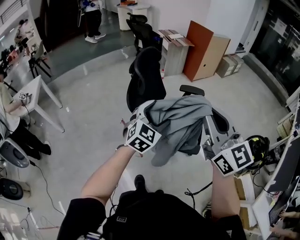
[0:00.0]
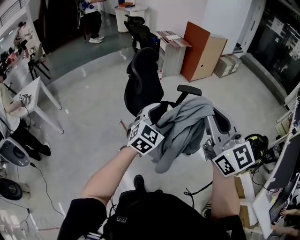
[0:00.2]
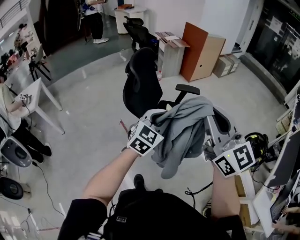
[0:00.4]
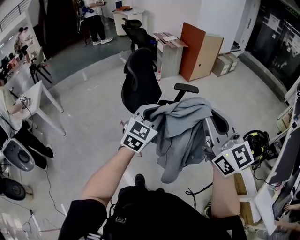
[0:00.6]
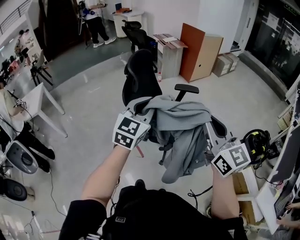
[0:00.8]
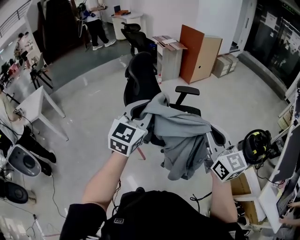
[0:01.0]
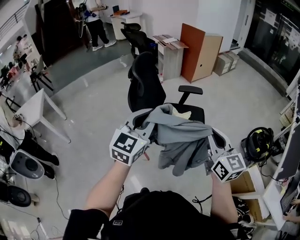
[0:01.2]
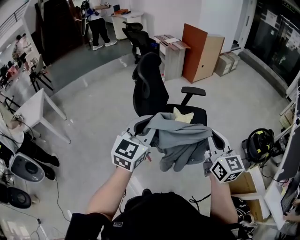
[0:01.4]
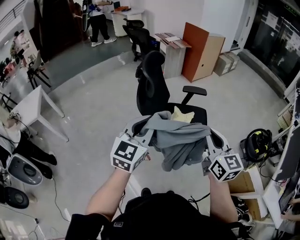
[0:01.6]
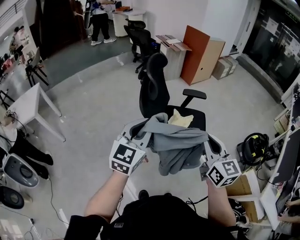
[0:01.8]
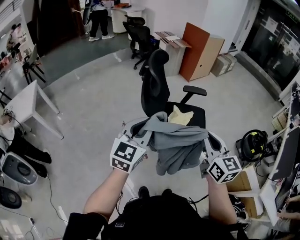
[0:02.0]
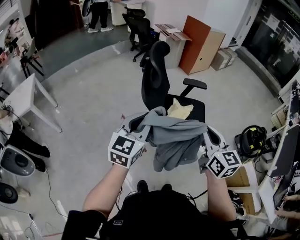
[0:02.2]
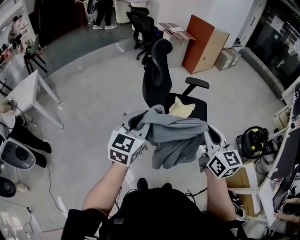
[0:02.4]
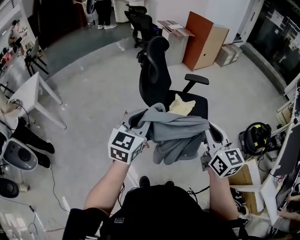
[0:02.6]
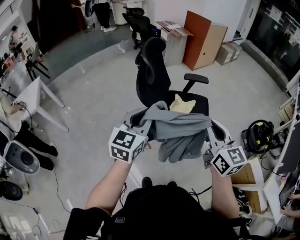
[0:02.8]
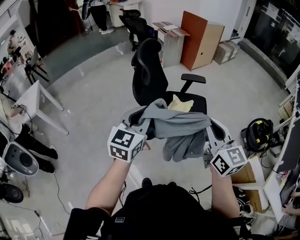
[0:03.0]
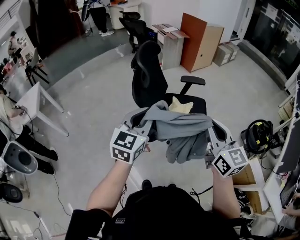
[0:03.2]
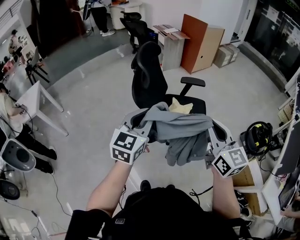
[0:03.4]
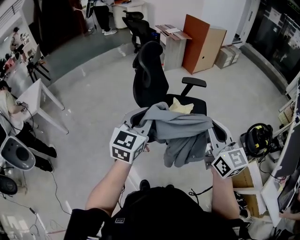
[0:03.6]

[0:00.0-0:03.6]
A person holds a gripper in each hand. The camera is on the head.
0:00.0 to 0:01.8: The right gripper travels downward by roughly 10 cm, and turns by about 20 degrees. The left gripper is displaced to the left, backward and upward by about 15 cm, rotates roughly 20 degrees, and closes up.
0:01.8 to 0:03.6: The left gripper moves approximately 5 cm.

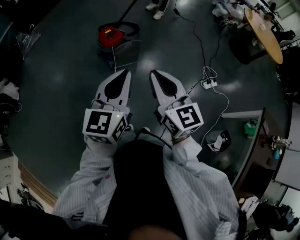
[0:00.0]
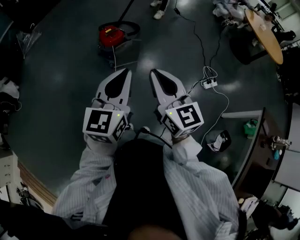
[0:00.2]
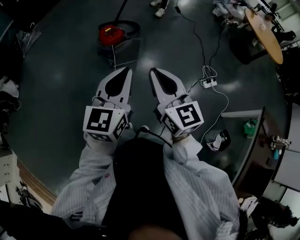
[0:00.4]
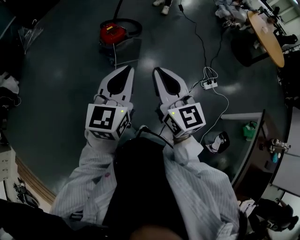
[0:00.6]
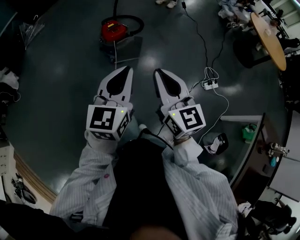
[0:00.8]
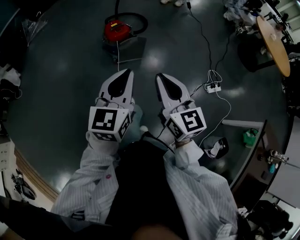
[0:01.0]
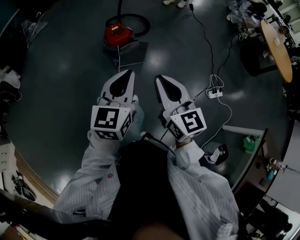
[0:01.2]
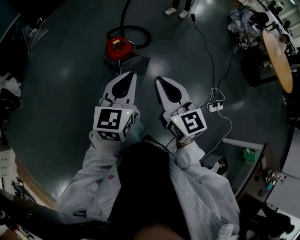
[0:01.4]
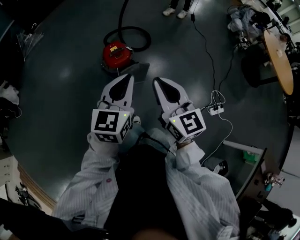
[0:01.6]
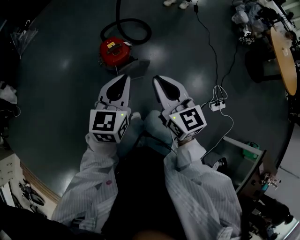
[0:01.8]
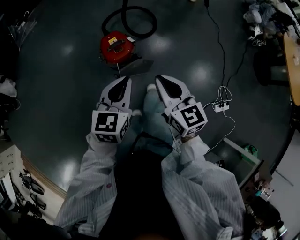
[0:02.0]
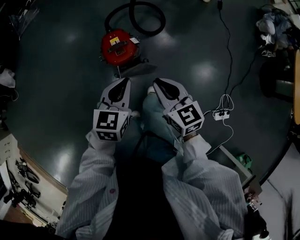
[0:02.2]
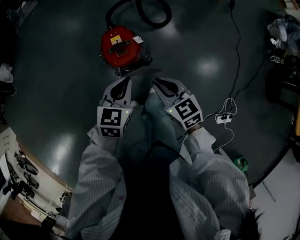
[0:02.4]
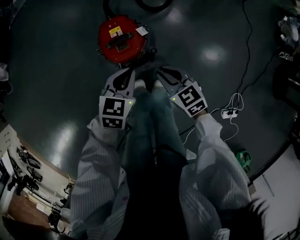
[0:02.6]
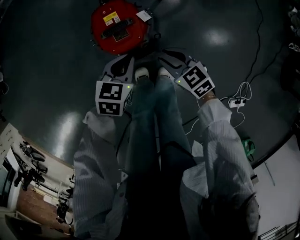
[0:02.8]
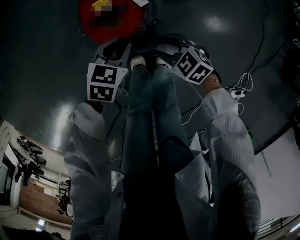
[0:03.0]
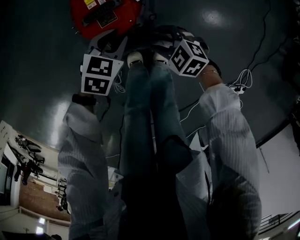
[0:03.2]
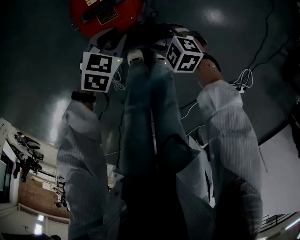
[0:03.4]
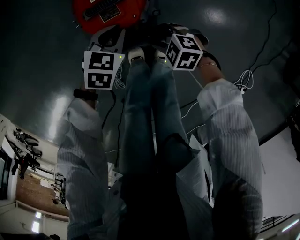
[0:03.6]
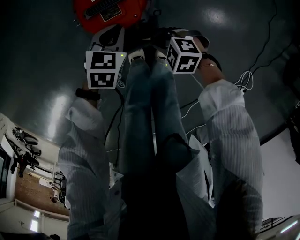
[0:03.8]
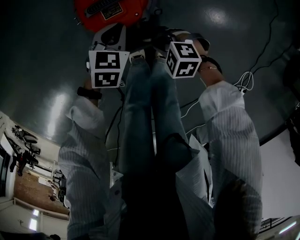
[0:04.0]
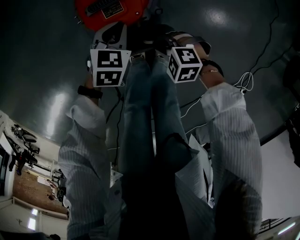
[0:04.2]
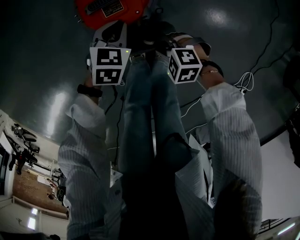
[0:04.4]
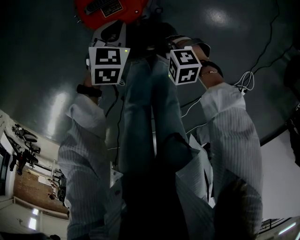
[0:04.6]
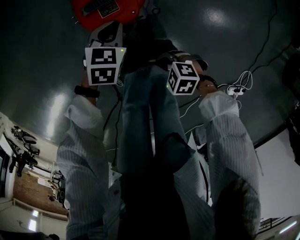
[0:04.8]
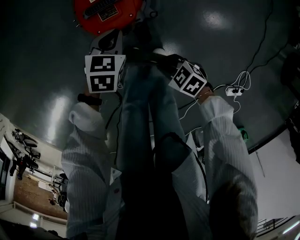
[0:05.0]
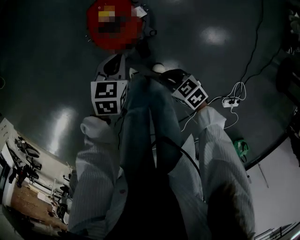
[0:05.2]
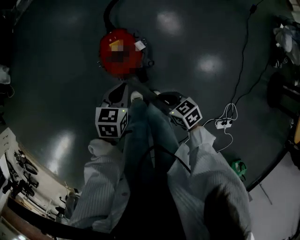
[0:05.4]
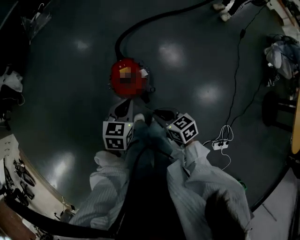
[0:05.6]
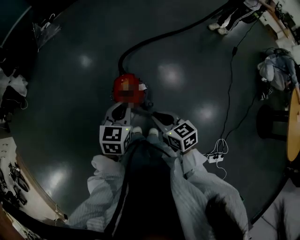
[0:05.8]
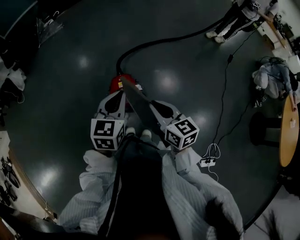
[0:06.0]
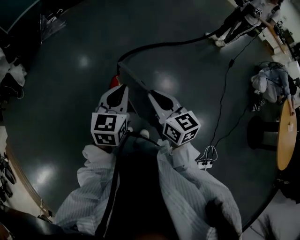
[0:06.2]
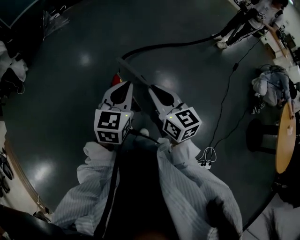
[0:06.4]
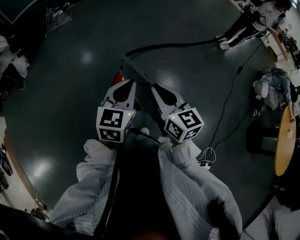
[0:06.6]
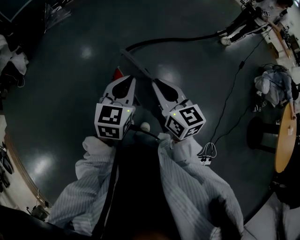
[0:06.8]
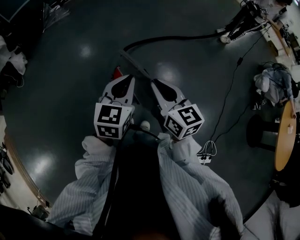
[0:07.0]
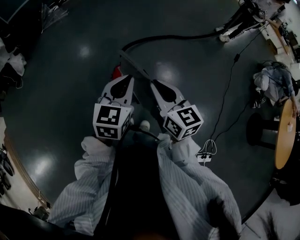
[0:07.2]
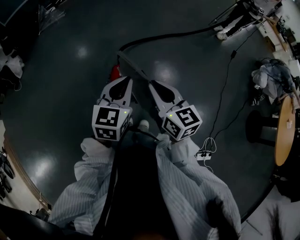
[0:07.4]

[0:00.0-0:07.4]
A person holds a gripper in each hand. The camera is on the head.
0:00.0 to 0:01.4: The grippers both shift forward by approximately 20 cm.
0:01.4 to 0:03.0: The pair of grippers is taken forward, some 50 cm. Both grippers move downward, roughly 60 cm. The left gripper tips its fingers downward by about 40 degrees, while the right gripper tips its fingers downward by roughly 50 degrees, and opens up.
0:03.0 to 0:04.4: The two grippers go some 5 cm downward. The right gripper rotates approximately 30 degrees, and closes its fingers.
0:04.4 to 0:06.0: Both grippers travel together upward, roughly 60 cm. The right gripper points its fingers roughly 40 degrees further upward; the left gripper tilts its fingers about 30 degrees upward.
0:06.0 to 0:07.4: The right gripper changes place by about 5 cm.

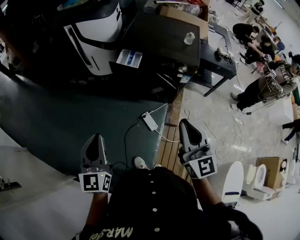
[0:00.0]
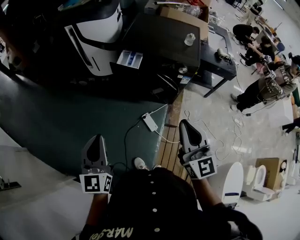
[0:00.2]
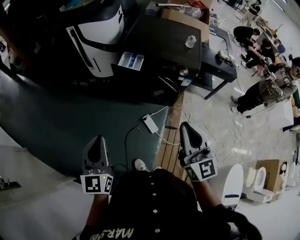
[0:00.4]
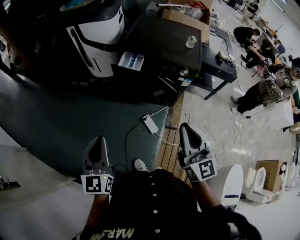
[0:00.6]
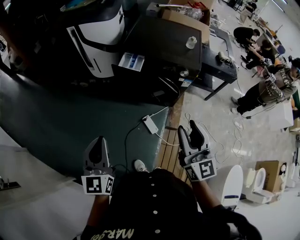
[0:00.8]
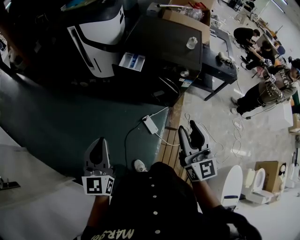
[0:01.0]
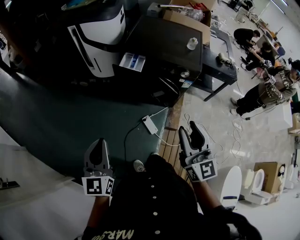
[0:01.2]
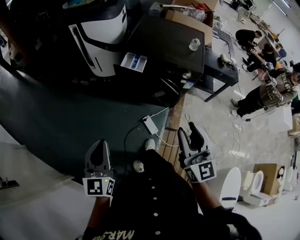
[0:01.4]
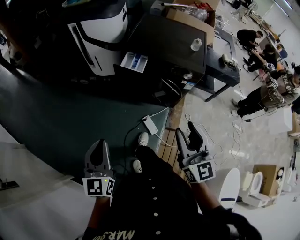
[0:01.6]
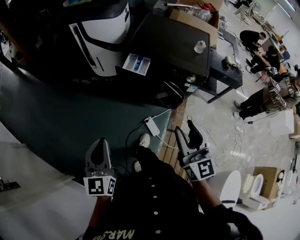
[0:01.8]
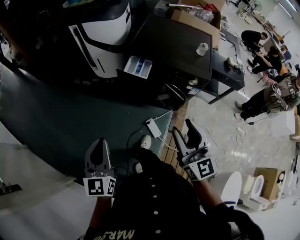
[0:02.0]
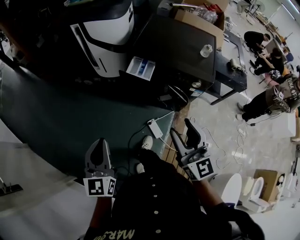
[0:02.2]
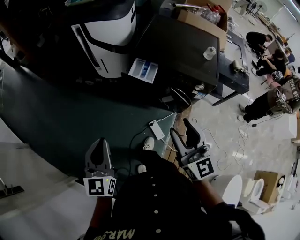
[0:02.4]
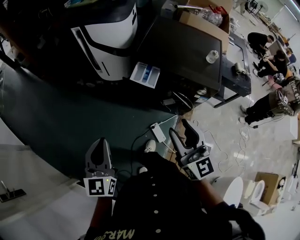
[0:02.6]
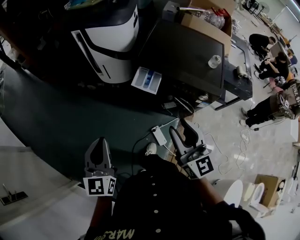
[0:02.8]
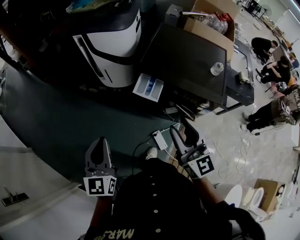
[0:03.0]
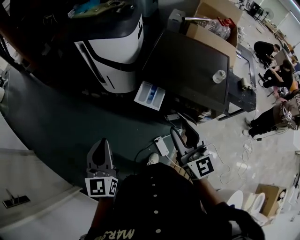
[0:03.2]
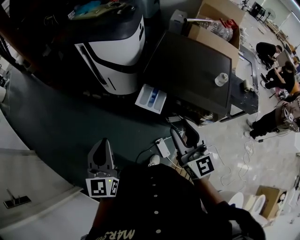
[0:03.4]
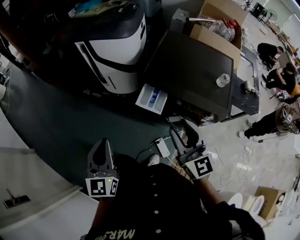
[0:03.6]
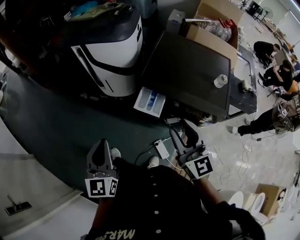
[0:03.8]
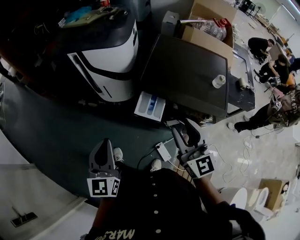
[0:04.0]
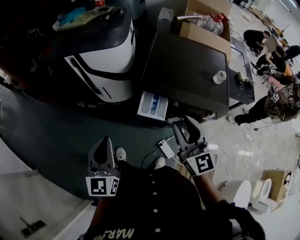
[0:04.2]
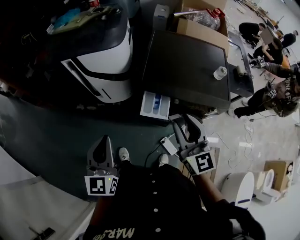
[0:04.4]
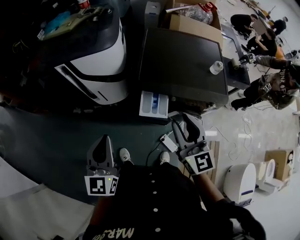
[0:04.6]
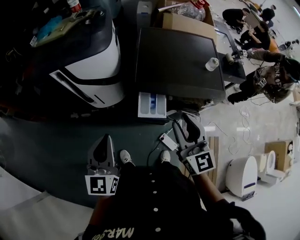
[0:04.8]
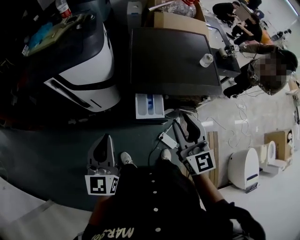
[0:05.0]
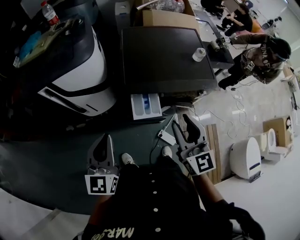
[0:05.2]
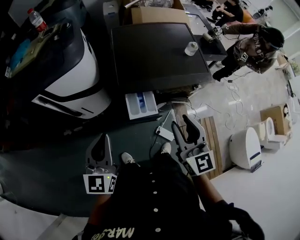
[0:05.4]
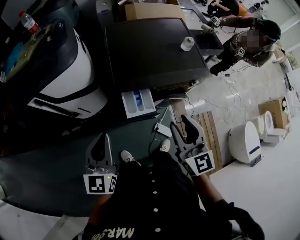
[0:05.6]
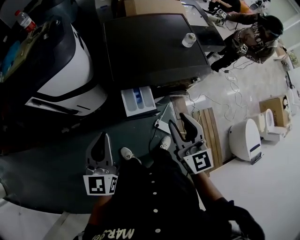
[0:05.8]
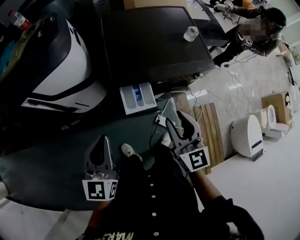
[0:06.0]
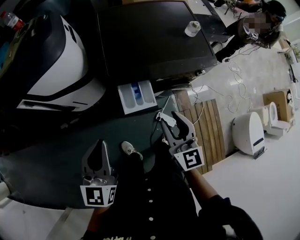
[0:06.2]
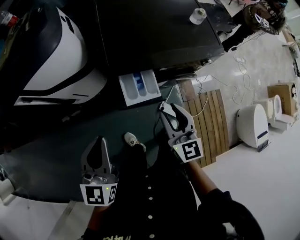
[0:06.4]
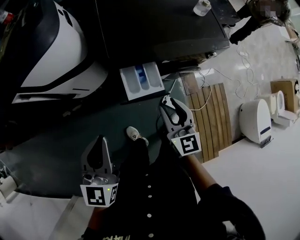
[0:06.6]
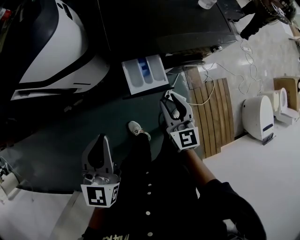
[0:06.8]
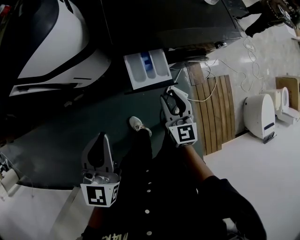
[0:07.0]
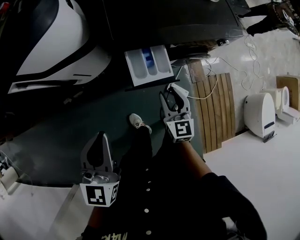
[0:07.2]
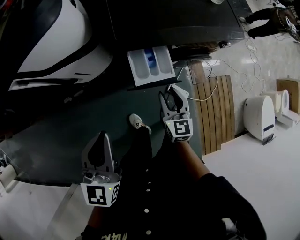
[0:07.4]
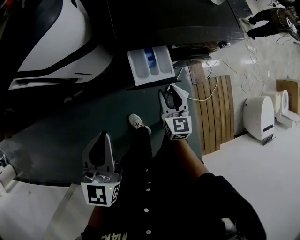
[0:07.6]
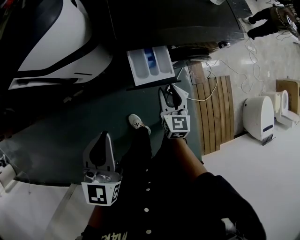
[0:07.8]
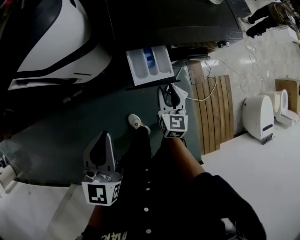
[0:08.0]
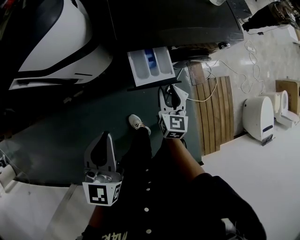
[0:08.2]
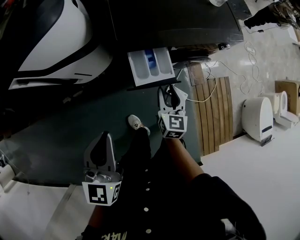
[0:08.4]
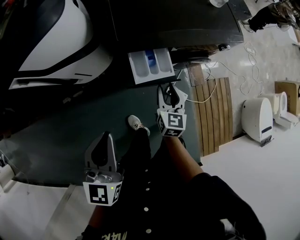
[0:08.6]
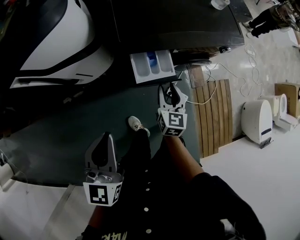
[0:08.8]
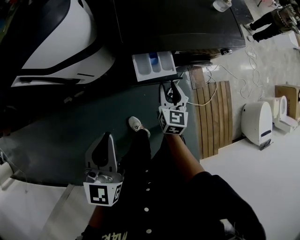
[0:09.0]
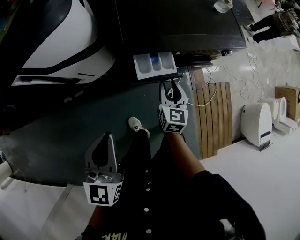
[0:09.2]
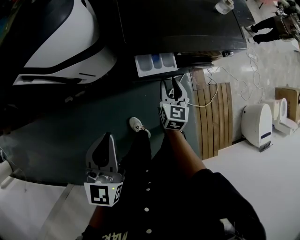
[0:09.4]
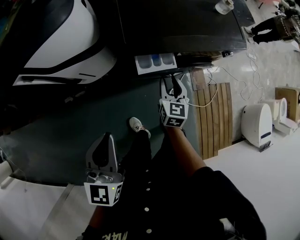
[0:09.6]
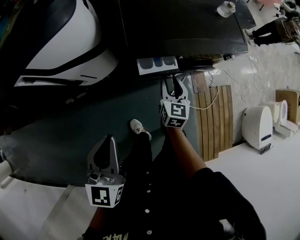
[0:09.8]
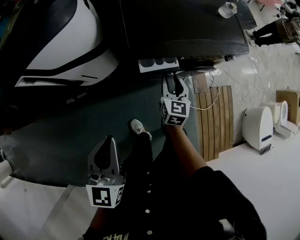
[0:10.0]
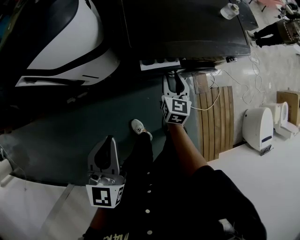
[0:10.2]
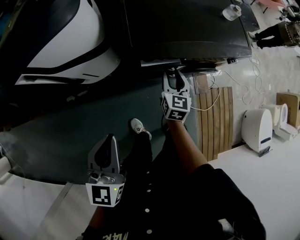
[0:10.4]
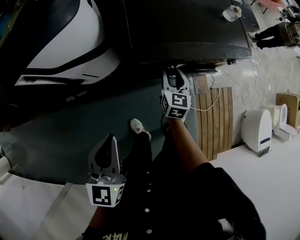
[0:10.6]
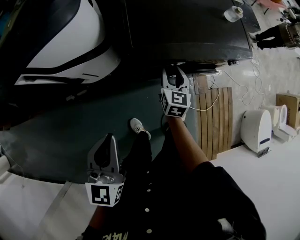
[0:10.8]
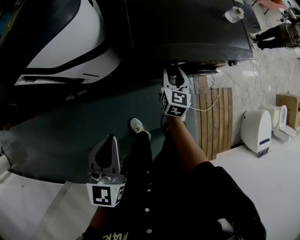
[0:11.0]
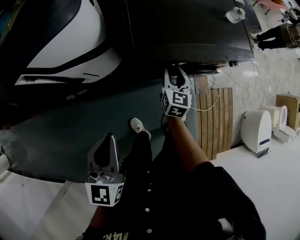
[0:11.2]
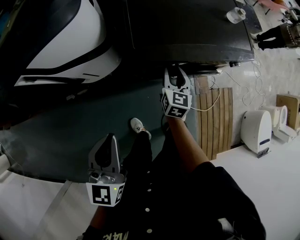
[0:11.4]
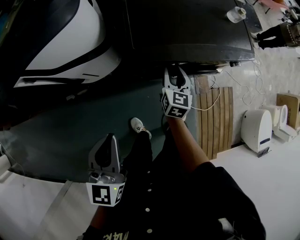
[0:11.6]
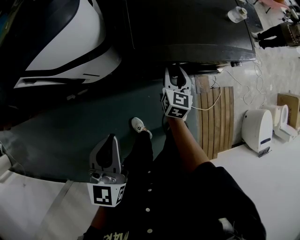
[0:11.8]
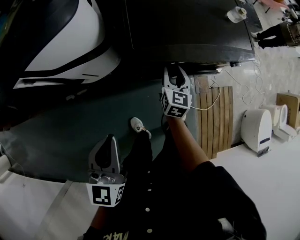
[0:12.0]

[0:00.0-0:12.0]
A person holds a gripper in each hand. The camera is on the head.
0:00.0 to 0:01.6: The right gripper opens.
0:01.6 to 0:03.0: Both grippers move forward, approximately 20 cm.
0:03.0 to 0:04.4: The grippers both shift forward by approximately 15 cm.
0:04.4 to 0:06.0: The right gripper is displaced downward by about 5 cm, and rotates about 30 degrees, while the left gripper ends up some 10 cm from where it was, and swivels approximately 30 degrees.
0:06.0 to 0:07.6: The left gripper shifts by approximately 5 cm, while the right gripper travels downward by some 25 cm, and rotates roughly 20 degrees.
0:07.6 to 0:09.0: The grippers make only small movements.
0:09.0 to 0:10.4: The right gripper goes about 10 cm forward.
0:10.4 to 0:12.0: The grippers move only a little.
